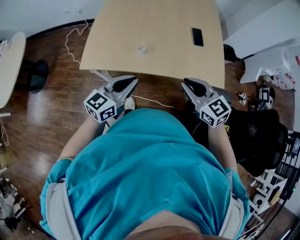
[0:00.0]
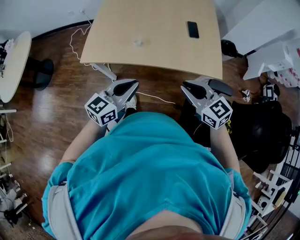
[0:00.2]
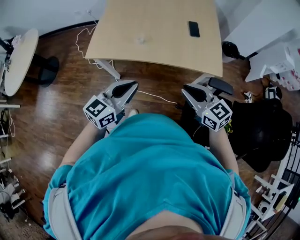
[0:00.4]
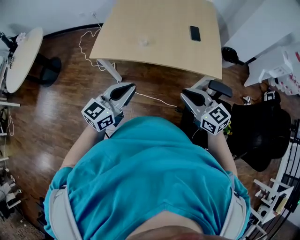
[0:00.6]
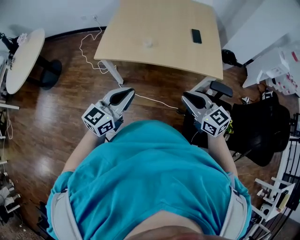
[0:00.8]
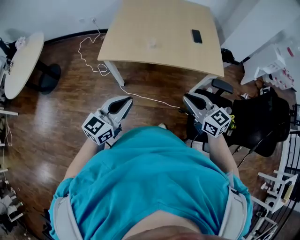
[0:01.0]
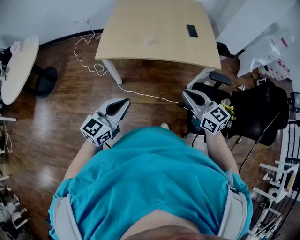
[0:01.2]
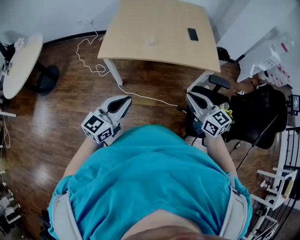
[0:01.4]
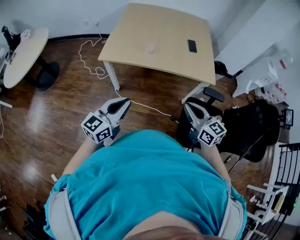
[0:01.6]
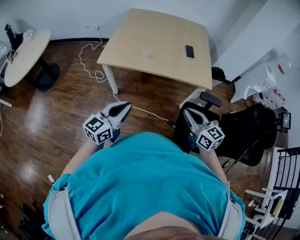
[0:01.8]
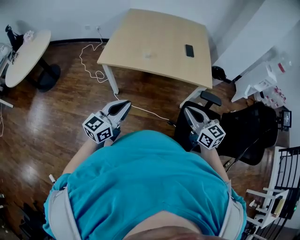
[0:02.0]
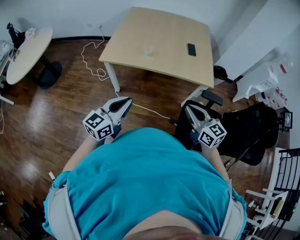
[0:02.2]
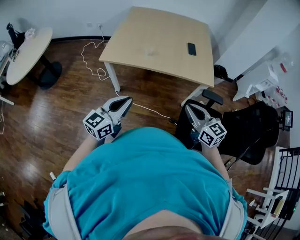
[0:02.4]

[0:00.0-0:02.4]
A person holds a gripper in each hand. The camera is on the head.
0:00.0 to 0:01.2: The two grippers go about 25 cm backward.
0:01.2 to 0:02.4: Both grippers travel together to the right, about 10 cm.

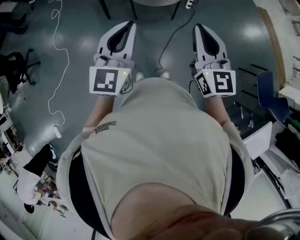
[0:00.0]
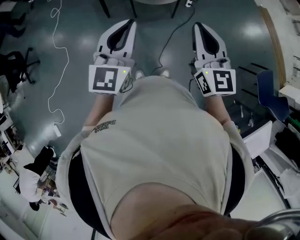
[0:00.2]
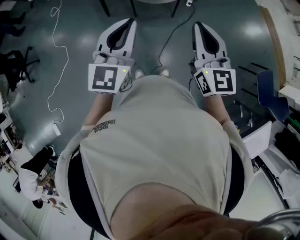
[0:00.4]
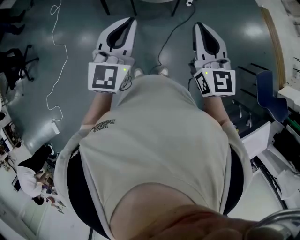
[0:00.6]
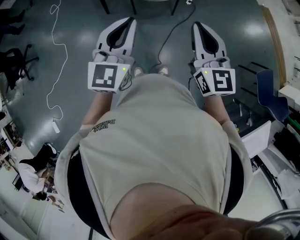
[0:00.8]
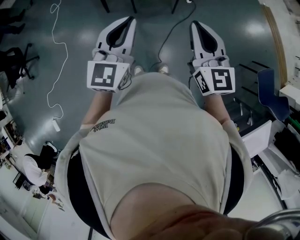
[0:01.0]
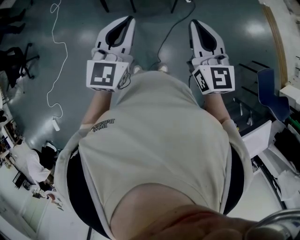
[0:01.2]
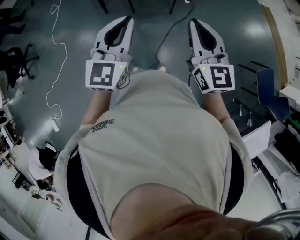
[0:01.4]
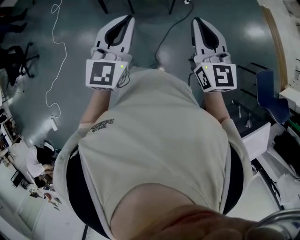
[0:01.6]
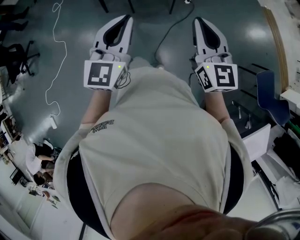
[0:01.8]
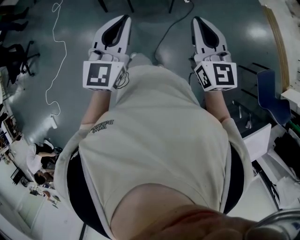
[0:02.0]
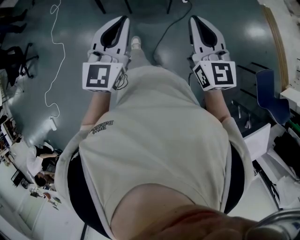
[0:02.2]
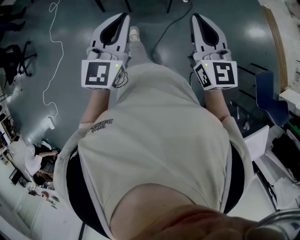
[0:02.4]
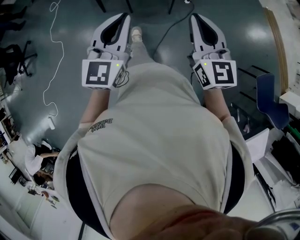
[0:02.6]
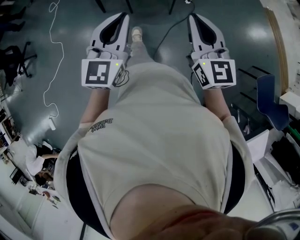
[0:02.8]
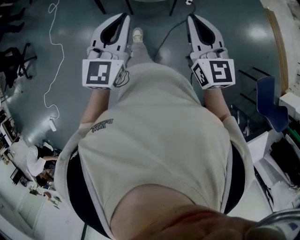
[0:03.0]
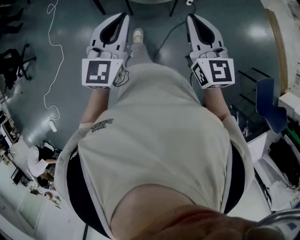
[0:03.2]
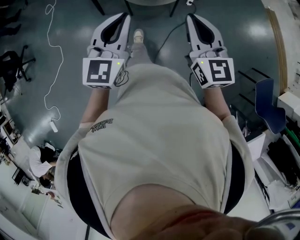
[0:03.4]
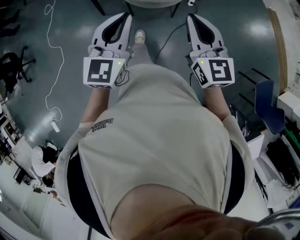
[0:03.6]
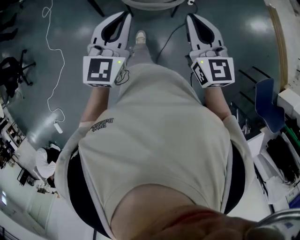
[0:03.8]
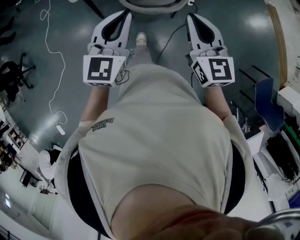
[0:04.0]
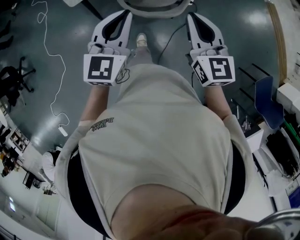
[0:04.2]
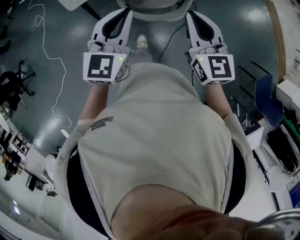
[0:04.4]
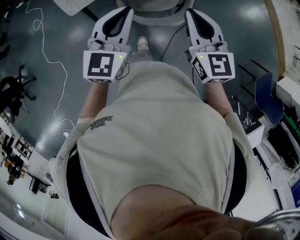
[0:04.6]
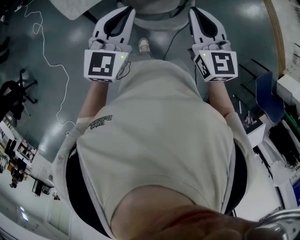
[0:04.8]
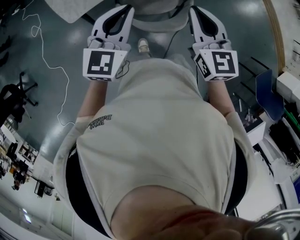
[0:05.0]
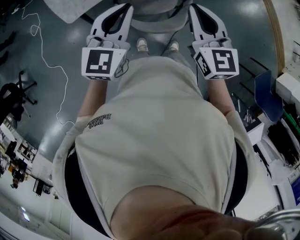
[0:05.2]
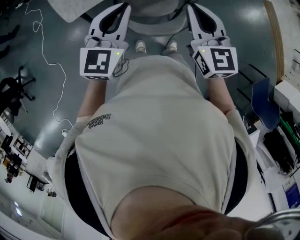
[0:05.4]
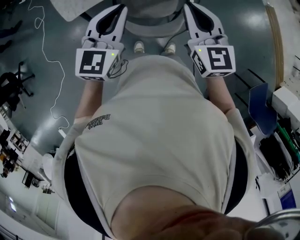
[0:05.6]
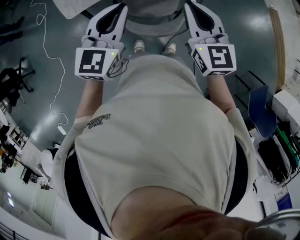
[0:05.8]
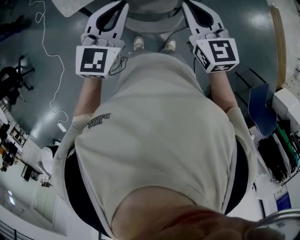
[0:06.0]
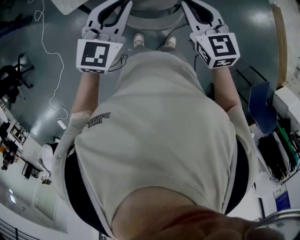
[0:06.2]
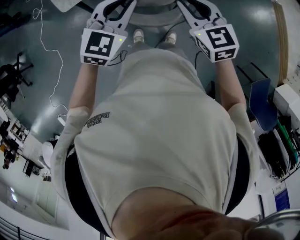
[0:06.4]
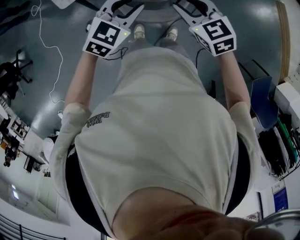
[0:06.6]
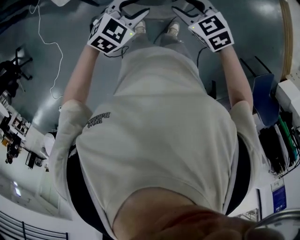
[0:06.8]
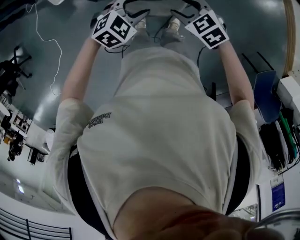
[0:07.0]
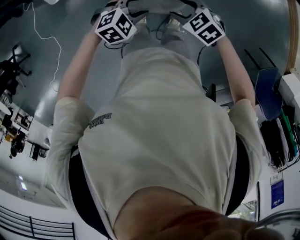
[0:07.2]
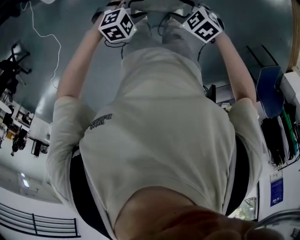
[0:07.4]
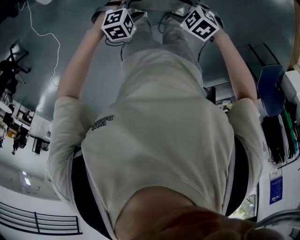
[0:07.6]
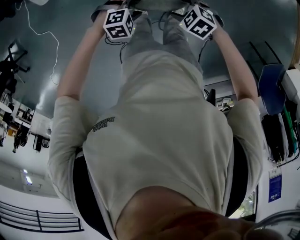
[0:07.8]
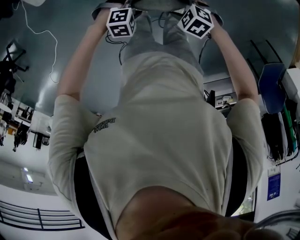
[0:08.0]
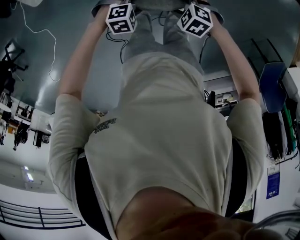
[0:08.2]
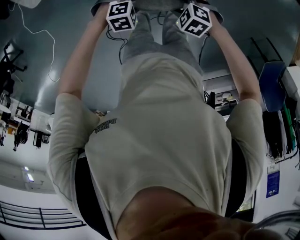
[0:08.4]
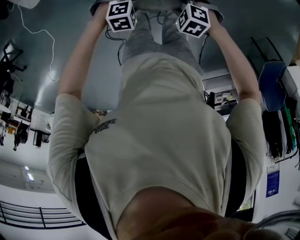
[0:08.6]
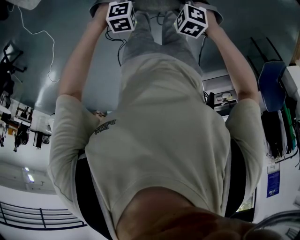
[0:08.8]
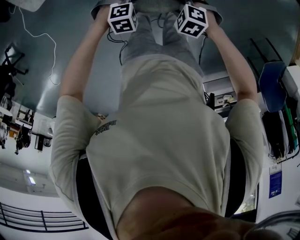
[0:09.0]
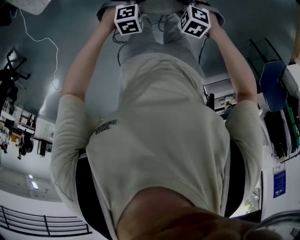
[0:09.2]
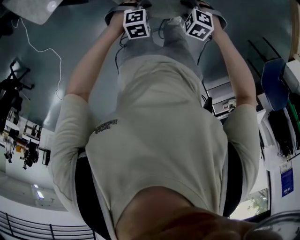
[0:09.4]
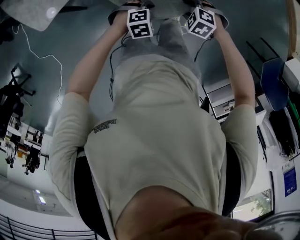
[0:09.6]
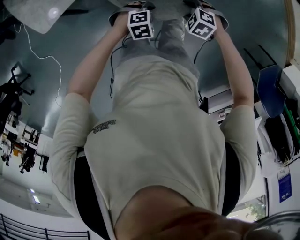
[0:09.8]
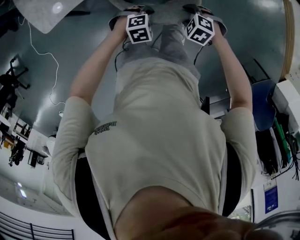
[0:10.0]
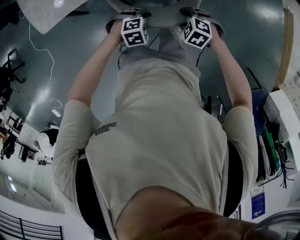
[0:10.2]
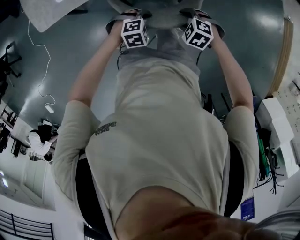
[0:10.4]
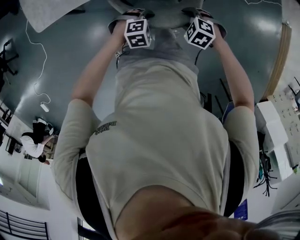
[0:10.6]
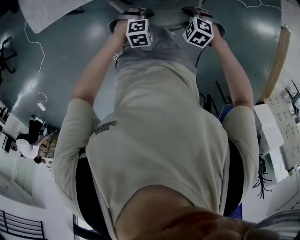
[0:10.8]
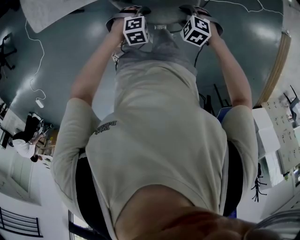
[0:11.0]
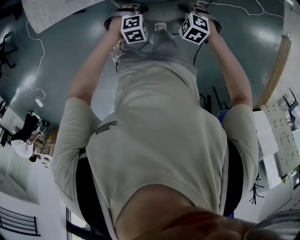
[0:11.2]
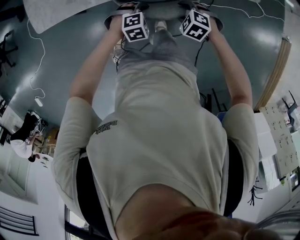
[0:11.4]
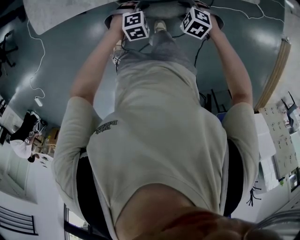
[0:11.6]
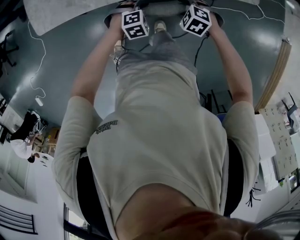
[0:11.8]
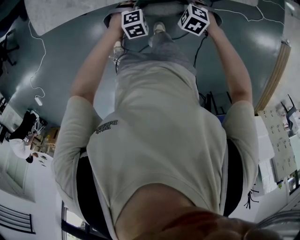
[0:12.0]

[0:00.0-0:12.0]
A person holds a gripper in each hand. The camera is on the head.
0:00.0 to 0:01.6: The two grippers go approximately 5 cm to the right.
0:01.6 to 0:03.0: Both grippers move forward, some 10 cm.
0:03.0 to 0:04.4: Both grippers travel together forward, roughly 30 cm.
0:04.4 to 0:06.0: The two grippers go about 10 cm forward.
0:06.0 to 0:07.6: The two grippers go some 35 cm downward. The right gripper tips its fingers downward by some 40 degrees, and opens its fingers, while the left gripper tips its fingers downward by roughly 50 degrees, and opens.
0:07.6 to 0:09.0: Both grippers travel together downward, roughly 10 cm.
0:09.0 to 0:10.4: The right gripper shifts by approximately 25 cm. The left gripper moves about 20 cm.
0:10.4 to 0:12.0: The right gripper changes place by some 20 cm. The left gripper changes place by some 15 cm.

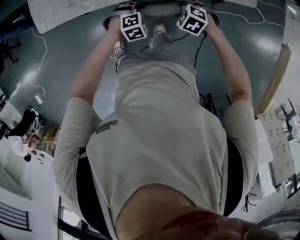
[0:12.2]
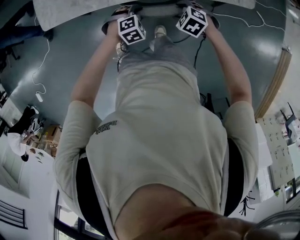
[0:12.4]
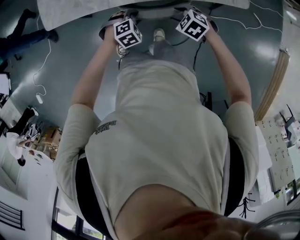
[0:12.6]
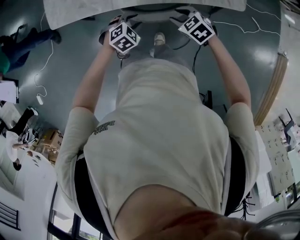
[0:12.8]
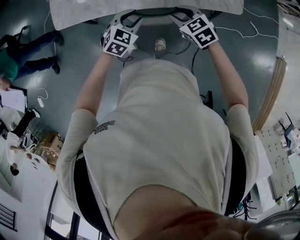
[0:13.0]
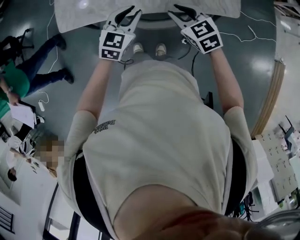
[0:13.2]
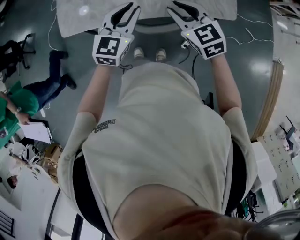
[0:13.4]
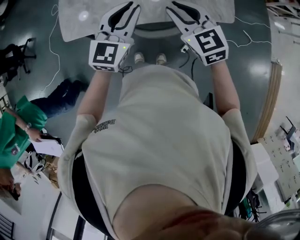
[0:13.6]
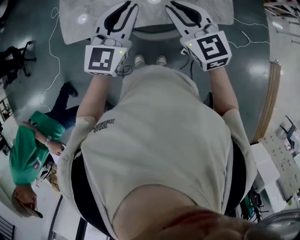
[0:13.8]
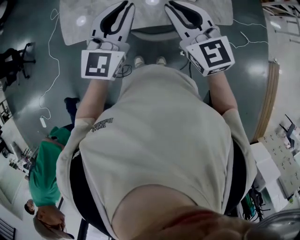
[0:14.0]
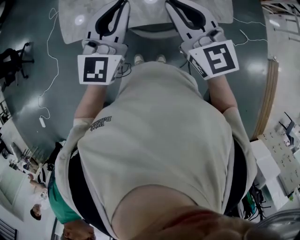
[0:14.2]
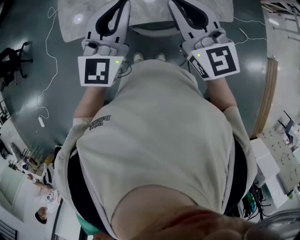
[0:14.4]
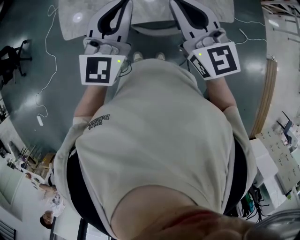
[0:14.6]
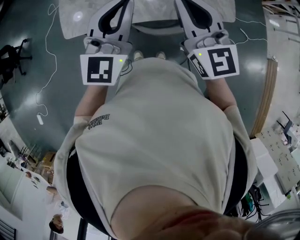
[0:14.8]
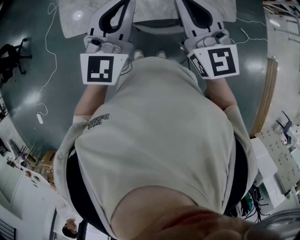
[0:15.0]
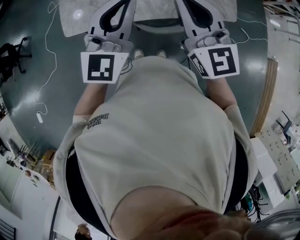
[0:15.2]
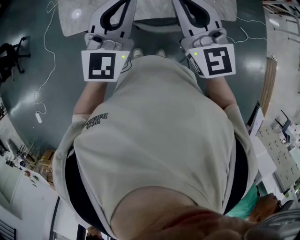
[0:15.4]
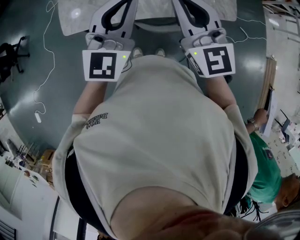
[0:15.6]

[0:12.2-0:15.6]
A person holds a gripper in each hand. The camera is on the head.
0:12.2 to 0:13.8: Both grippers move upward, some 50 cm. The left gripper angles its fingers upward, by roughly 70 degrees, and closes up; the right gripper tilts its fingers some 50 degrees upward, and closes.
0:13.8 to 0:15.6: The left gripper shifts by approximately 5 cm. Meanwhile the right gripper goes about 5 cm upward.

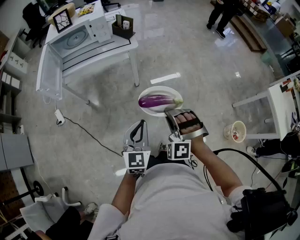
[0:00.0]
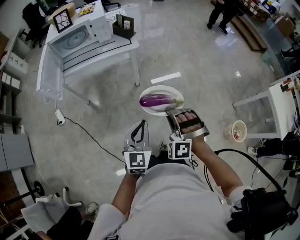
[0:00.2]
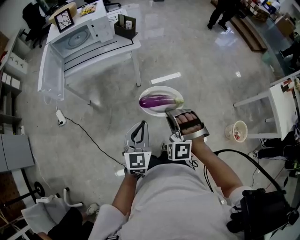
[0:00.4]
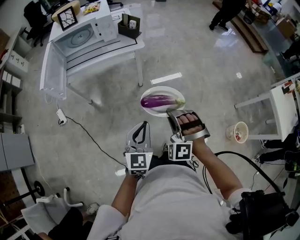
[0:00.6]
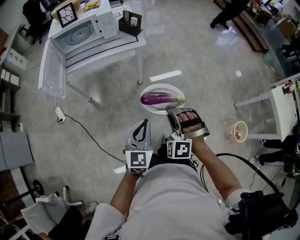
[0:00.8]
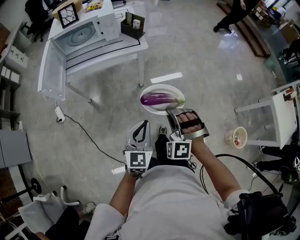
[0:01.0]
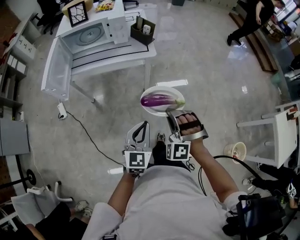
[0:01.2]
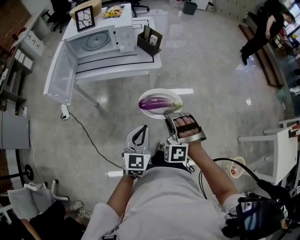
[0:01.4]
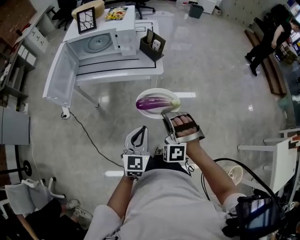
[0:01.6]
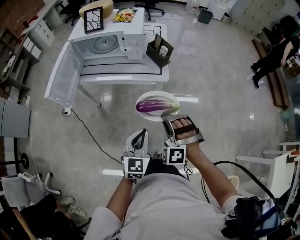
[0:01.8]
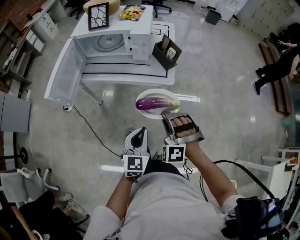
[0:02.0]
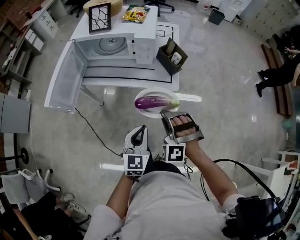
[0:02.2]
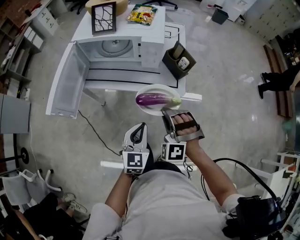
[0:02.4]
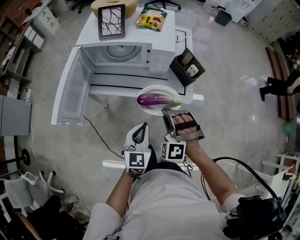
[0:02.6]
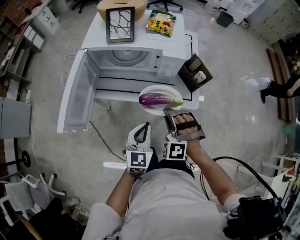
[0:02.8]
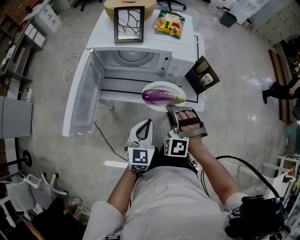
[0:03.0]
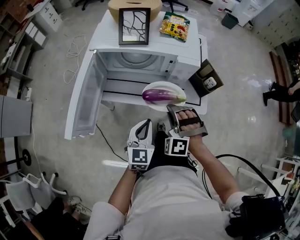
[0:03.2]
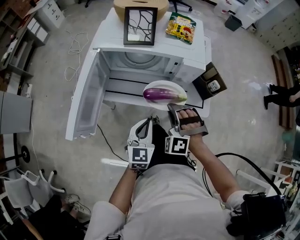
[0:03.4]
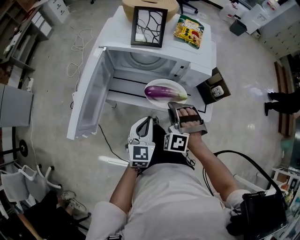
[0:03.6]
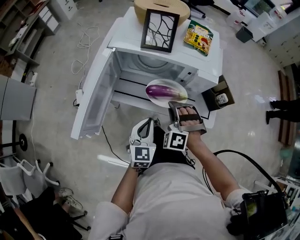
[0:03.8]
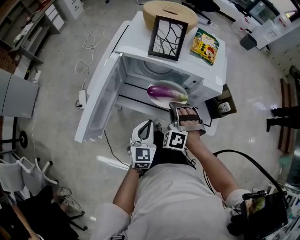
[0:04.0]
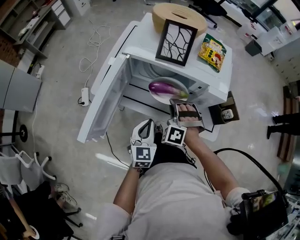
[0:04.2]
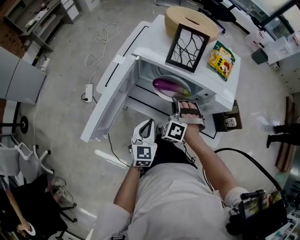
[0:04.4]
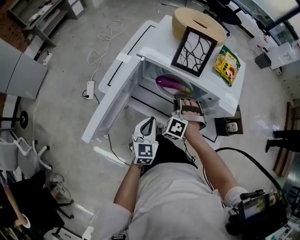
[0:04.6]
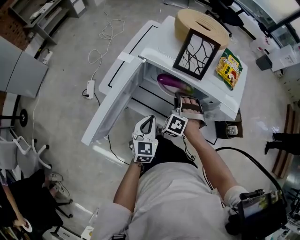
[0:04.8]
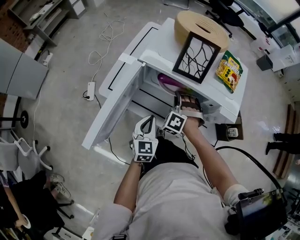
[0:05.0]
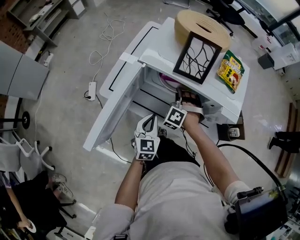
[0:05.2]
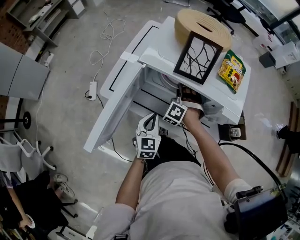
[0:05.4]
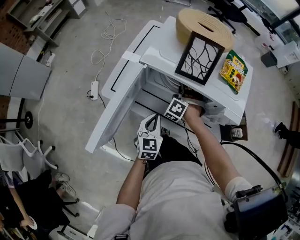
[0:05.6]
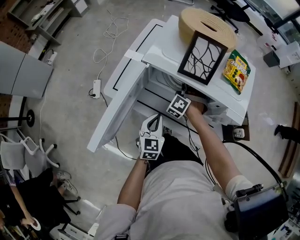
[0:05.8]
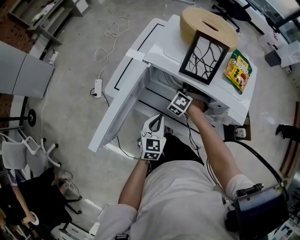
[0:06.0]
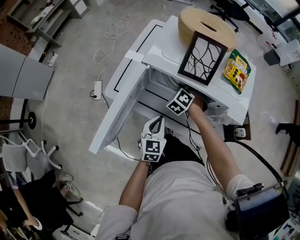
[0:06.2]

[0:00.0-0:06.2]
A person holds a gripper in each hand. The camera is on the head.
0:00.0 to 0:01.6: The left gripper ends up roughly 20 cm from where it was.
0:01.6 to 0:03.2: The left gripper shifts by roughly 35 cm.
0:03.2 to 0:04.6: The left gripper shifts by about 15 cm.
